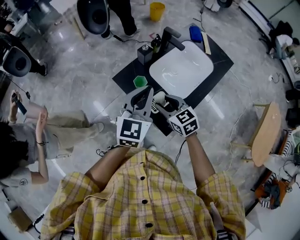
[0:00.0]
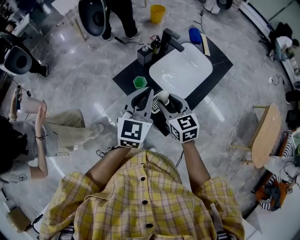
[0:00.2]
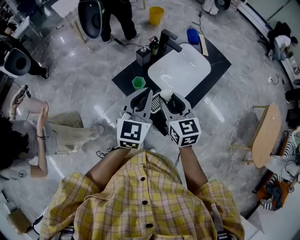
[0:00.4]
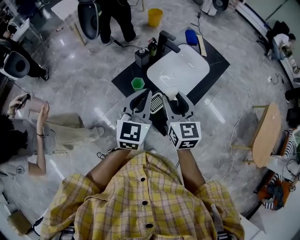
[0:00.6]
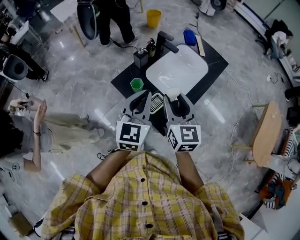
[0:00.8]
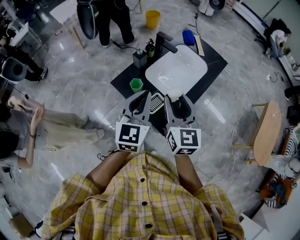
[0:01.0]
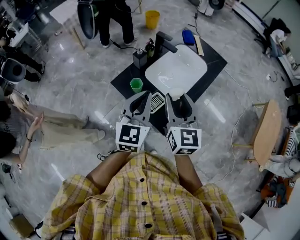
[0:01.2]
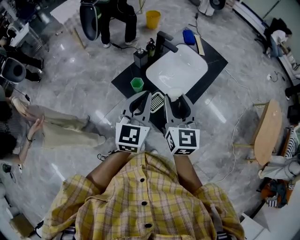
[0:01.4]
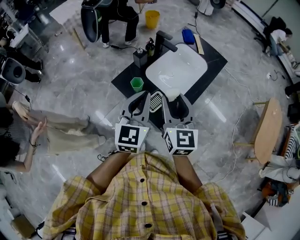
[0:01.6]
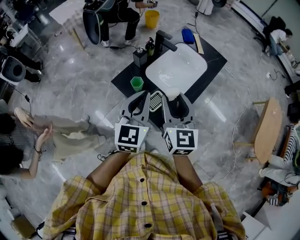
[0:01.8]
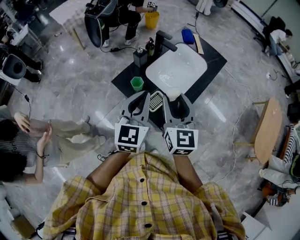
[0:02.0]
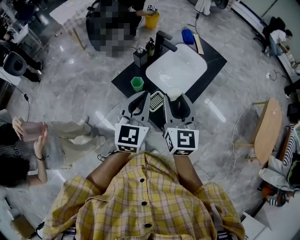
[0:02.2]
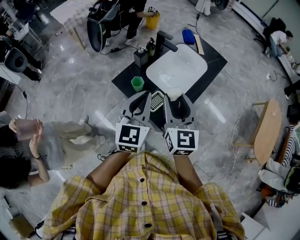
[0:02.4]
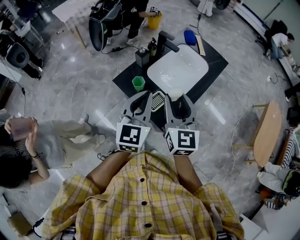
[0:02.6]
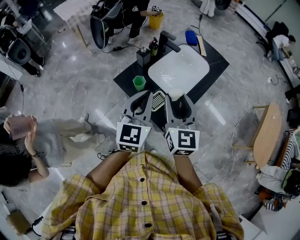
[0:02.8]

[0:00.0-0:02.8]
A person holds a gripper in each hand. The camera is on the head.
0.0 to 1.4 s: The right gripper travels upward by approximately 15 cm, and changes its angle by some 40 degrees. The left gripper shifts roughly 5 cm backward.
1.4 to 2.8 s: There are only small adjustments of the grippers.

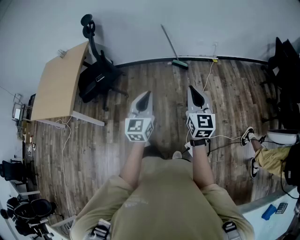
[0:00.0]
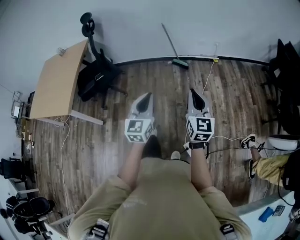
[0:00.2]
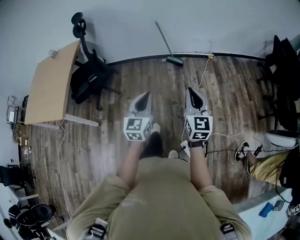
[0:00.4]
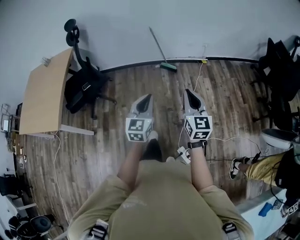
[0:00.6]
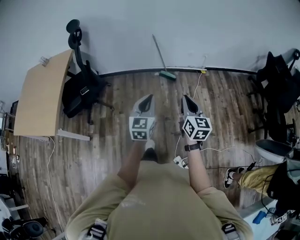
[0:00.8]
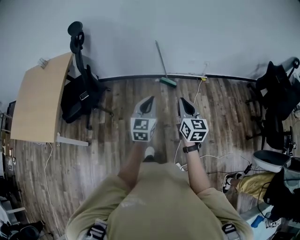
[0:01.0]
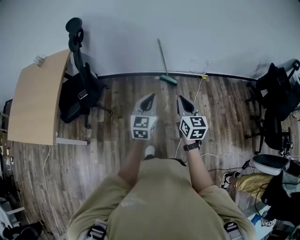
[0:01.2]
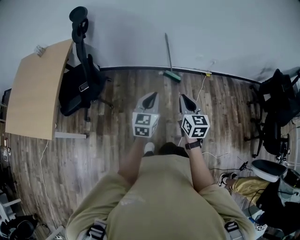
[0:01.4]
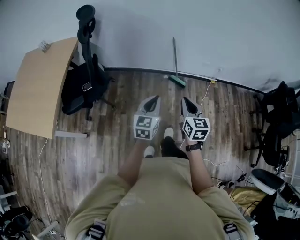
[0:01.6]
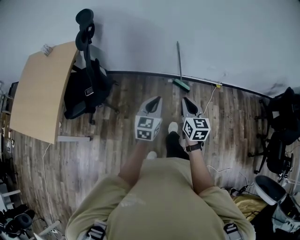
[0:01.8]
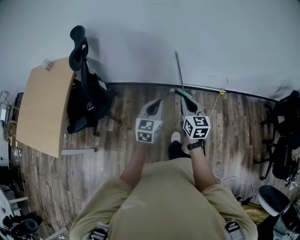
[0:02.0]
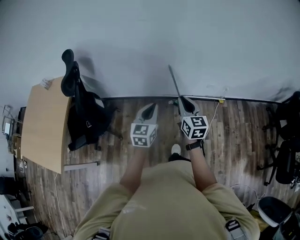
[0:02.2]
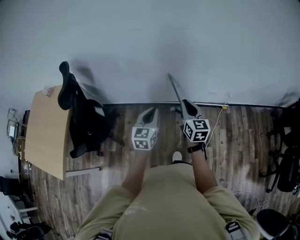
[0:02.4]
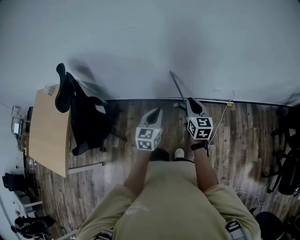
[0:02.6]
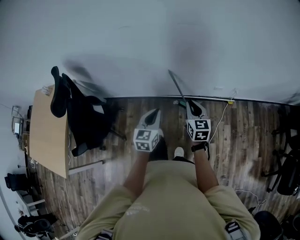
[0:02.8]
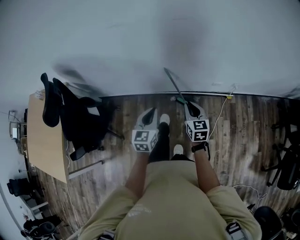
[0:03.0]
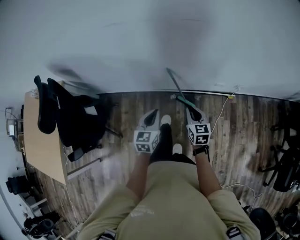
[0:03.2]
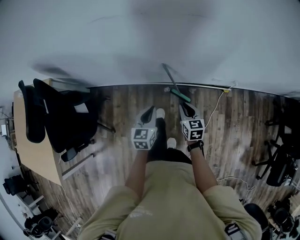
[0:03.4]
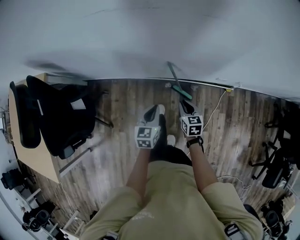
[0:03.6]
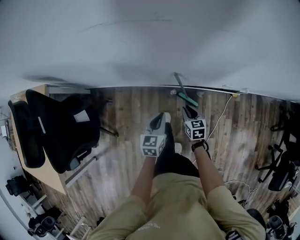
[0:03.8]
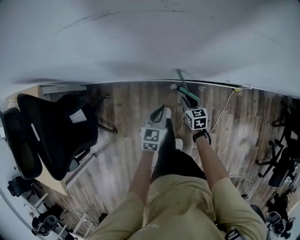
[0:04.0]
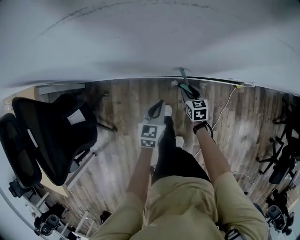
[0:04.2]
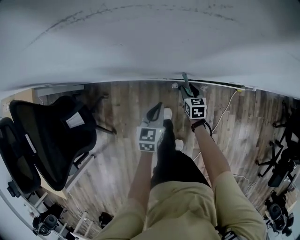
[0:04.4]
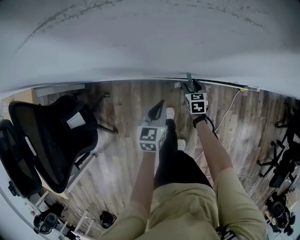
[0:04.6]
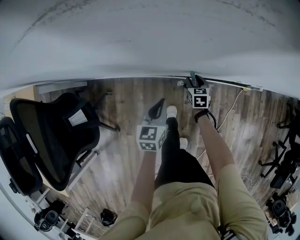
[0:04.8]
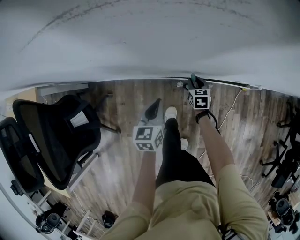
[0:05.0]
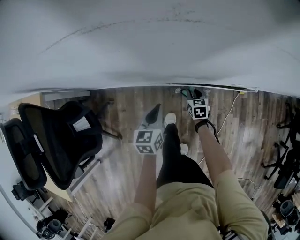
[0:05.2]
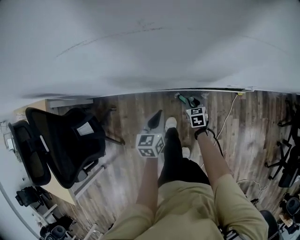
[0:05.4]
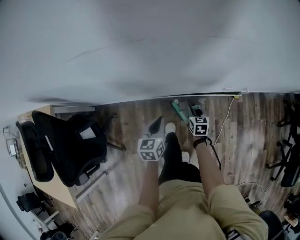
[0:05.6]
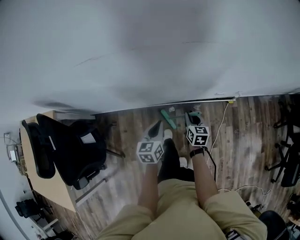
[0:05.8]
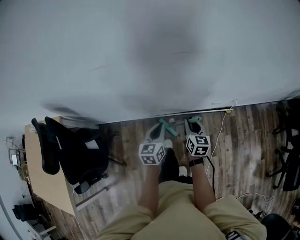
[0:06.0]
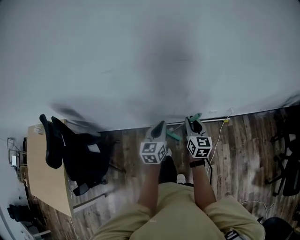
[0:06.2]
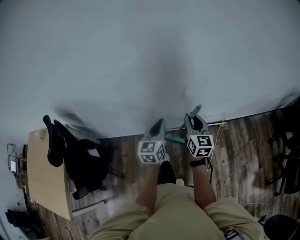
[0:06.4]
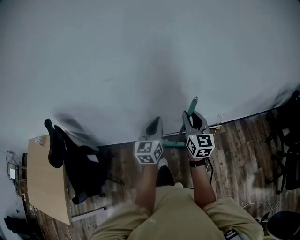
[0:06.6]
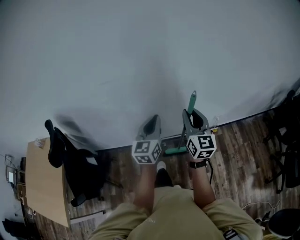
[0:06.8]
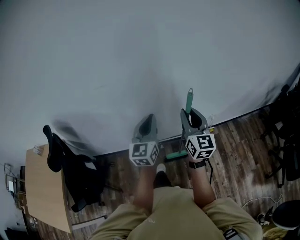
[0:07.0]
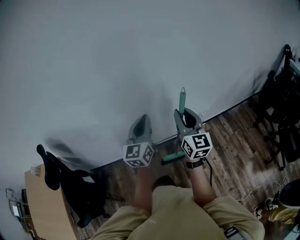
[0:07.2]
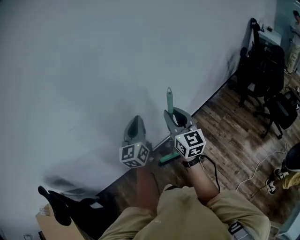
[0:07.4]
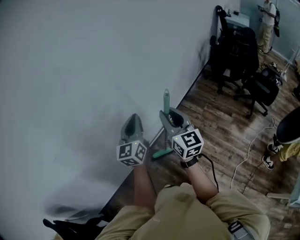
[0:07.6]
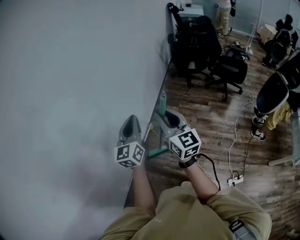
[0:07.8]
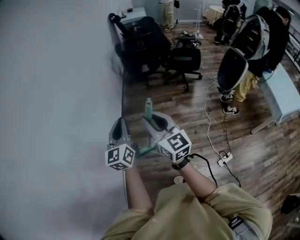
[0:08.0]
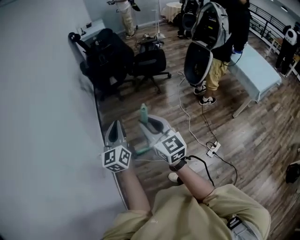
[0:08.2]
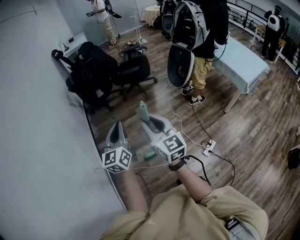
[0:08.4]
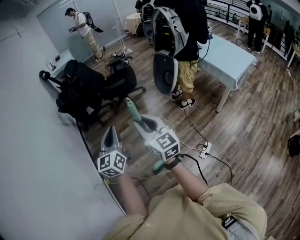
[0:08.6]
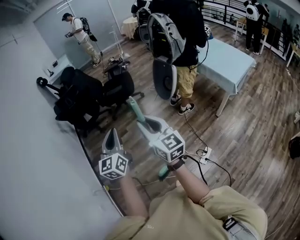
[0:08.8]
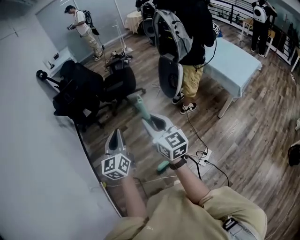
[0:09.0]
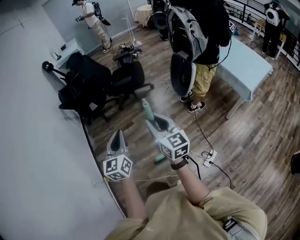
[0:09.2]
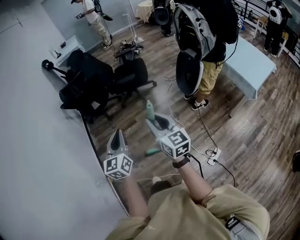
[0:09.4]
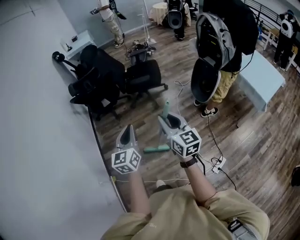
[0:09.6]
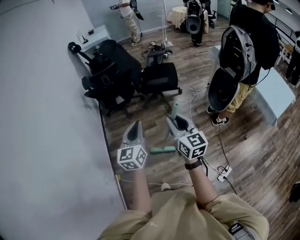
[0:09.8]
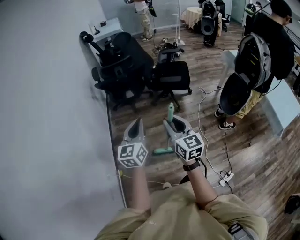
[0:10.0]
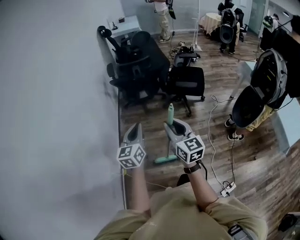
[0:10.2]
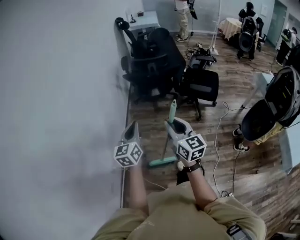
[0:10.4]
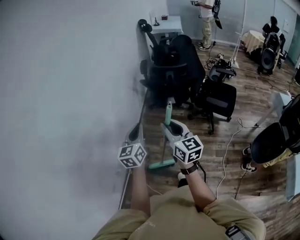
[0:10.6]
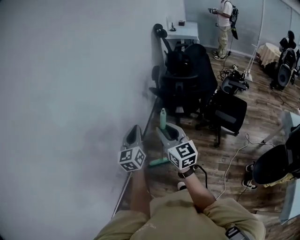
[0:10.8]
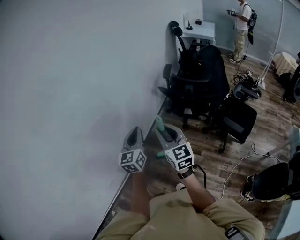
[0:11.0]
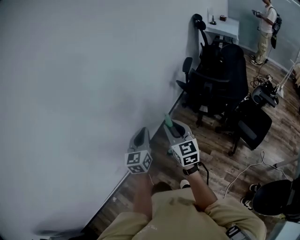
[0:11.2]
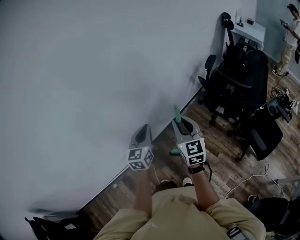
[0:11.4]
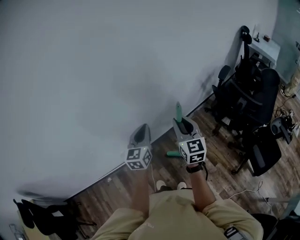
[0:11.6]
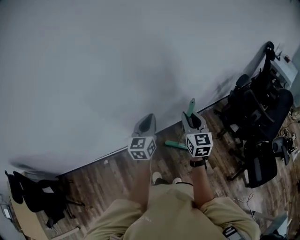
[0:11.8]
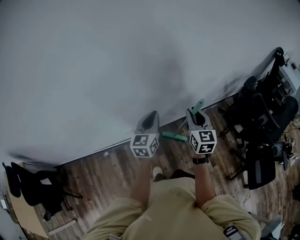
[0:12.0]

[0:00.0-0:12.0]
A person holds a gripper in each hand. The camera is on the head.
0.0 to 1.6 s: The left gripper travels forward by approximately 35 cm. The right gripper shifts approximately 40 cm forward and to the left.
1.6 to 3.0 s: The pair of grippers is taken forward, approximately 50 cm.
3.0 to 4.4 s: Both grippers travel together downward and forward, approximately 40 cm. The right gripper turns by about 20 degrees, and opens up.
4.4 to 6.0 s: The left gripper travels upward and to the right by some 25 cm. The right gripper goes approximately 35 cm upward, backward and to the right, and swivels roughly 30 degrees.
6.0 to 7.6 s: The two grippers go roughly 35 cm upward. The left gripper swivels approximately 50 degrees; the right gripper points its fingers roughly 30 degrees further upward.
7.6 to 9.0 s: Both grippers are carried some 60 cm. The right gripper rotates about 60 degrees. Meanwhile the left gripper turns by roughly 70 degrees.
9.0 to 10.4 s: Both grippers are carried about 50 cm. The left gripper rotates roughly 30 degrees; the right gripper changes its angle by some 30 degrees.
10.4 to 12.0 s: The right gripper shifts by some 35 cm, and turns by approximately 50 degrees. The left gripper changes place by some 30 cm, and swivels about 60 degrees.

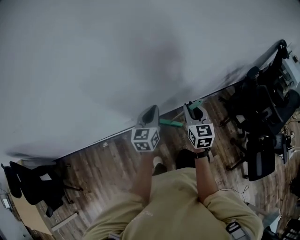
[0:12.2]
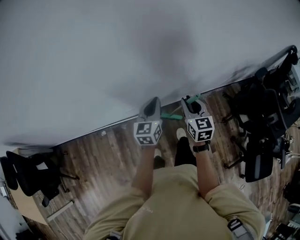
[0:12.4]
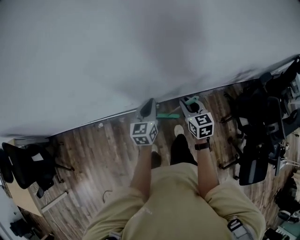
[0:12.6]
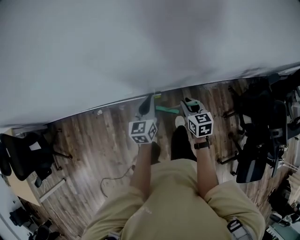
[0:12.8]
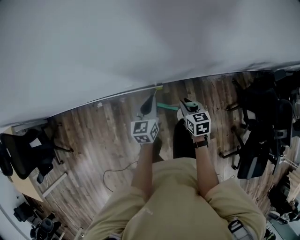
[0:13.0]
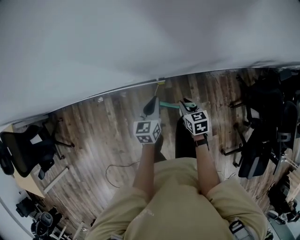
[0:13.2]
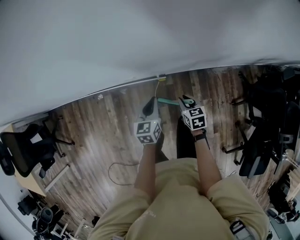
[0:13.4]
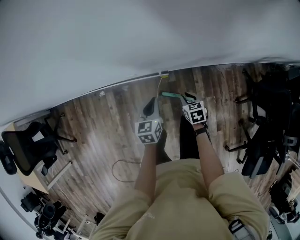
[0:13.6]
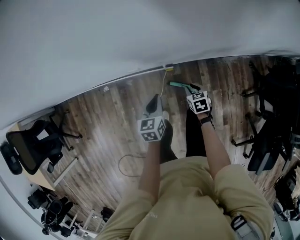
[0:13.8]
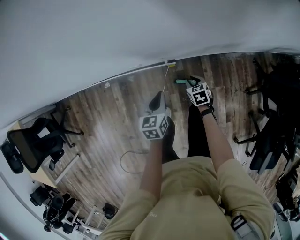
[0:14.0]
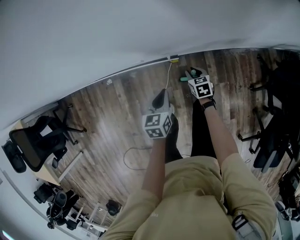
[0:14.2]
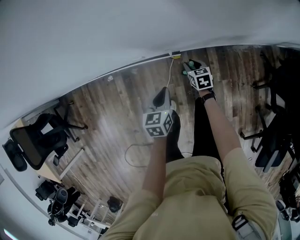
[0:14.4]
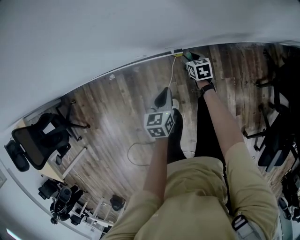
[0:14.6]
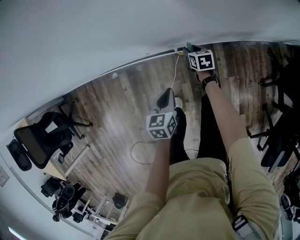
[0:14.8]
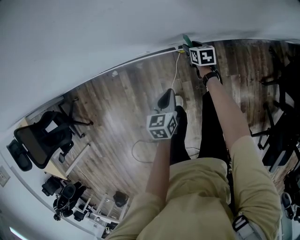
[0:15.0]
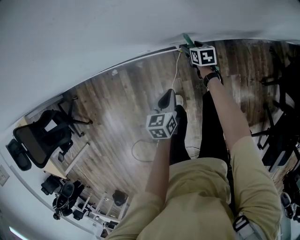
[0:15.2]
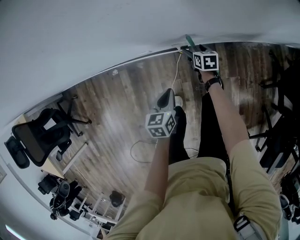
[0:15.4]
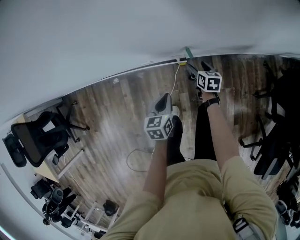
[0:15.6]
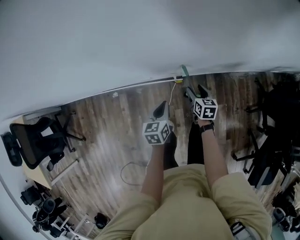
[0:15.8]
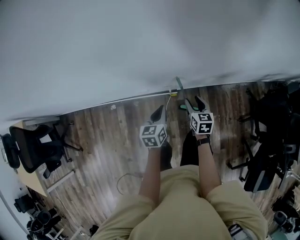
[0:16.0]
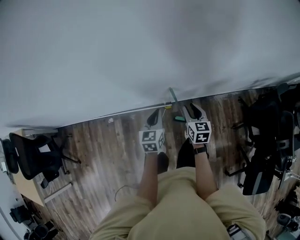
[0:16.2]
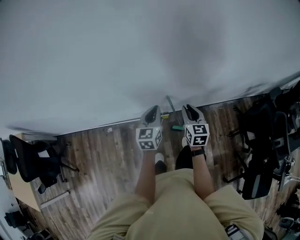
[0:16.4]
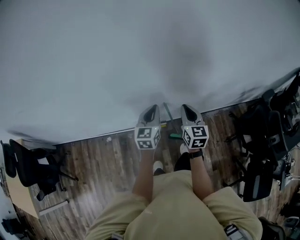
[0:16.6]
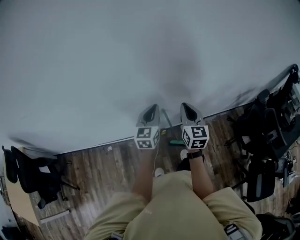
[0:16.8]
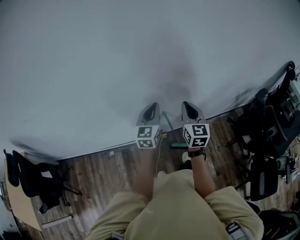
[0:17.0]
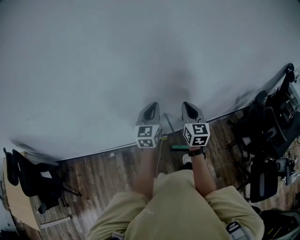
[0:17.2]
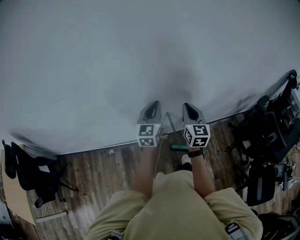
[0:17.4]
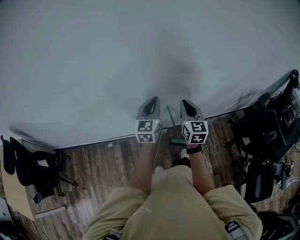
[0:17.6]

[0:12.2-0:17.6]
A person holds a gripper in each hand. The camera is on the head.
12.2 to 13.6 s: The two grippers go approximately 35 cm downward. The left gripper turns by roughly 30 degrees; the right gripper tilts its fingers about 40 degrees downward.
13.6 to 15.0 s: The right gripper goes approximately 20 cm forward and downward, while the left gripper is displaced downward by some 10 cm.
15.0 to 16.2 s: The left gripper shifts some 20 cm upward, and changes its angle by about 20 degrees; the right gripper is displaced upward by some 35 cm, changes its angle by some 30 degrees, and opens and closes again.
16.2 to 17.6 s: The grippers both shift upward by roughly 20 cm. The right gripper swivels about 20 degrees, and closes up, while the left gripper swivels about 30 degrees.

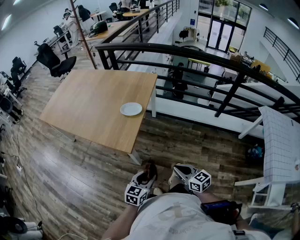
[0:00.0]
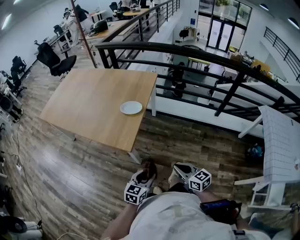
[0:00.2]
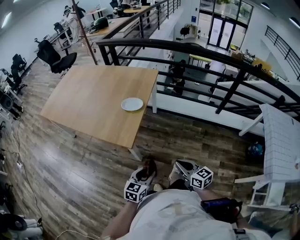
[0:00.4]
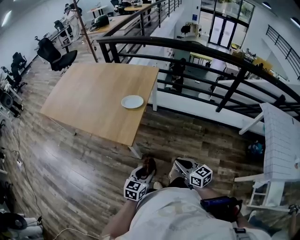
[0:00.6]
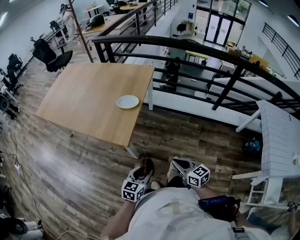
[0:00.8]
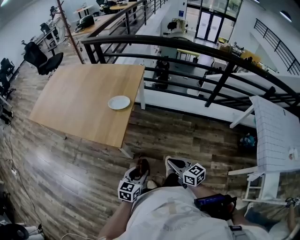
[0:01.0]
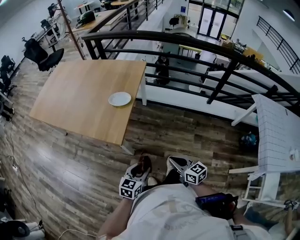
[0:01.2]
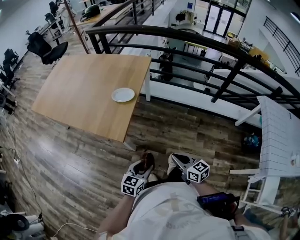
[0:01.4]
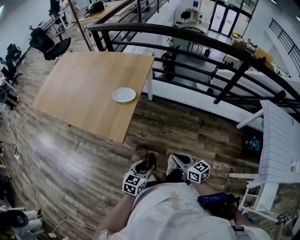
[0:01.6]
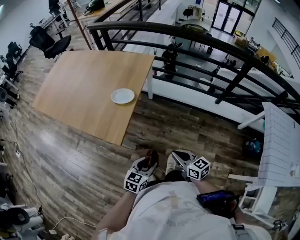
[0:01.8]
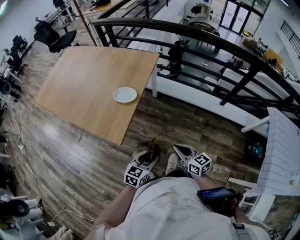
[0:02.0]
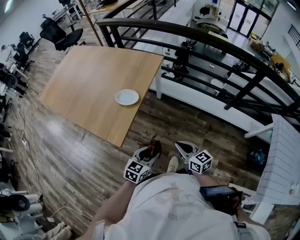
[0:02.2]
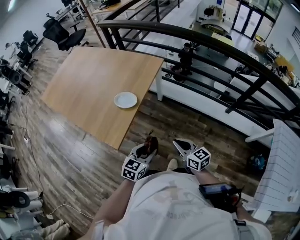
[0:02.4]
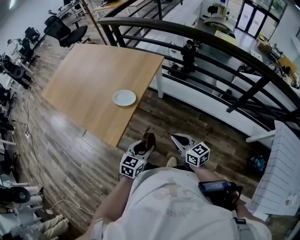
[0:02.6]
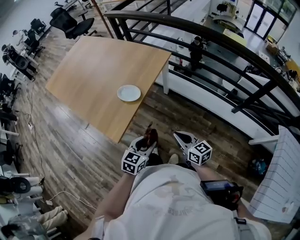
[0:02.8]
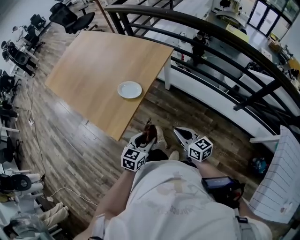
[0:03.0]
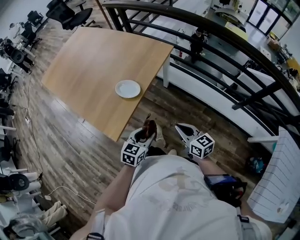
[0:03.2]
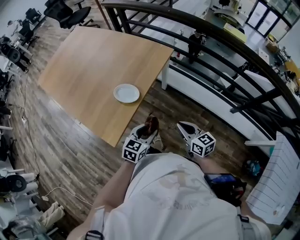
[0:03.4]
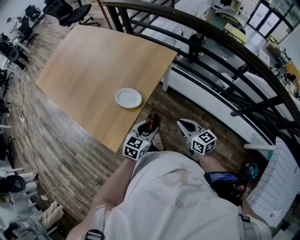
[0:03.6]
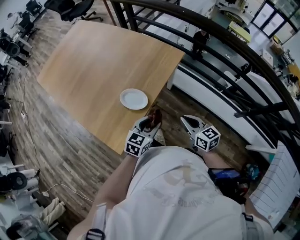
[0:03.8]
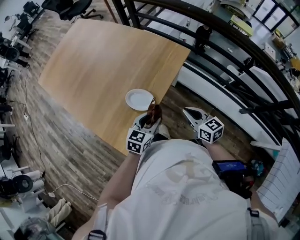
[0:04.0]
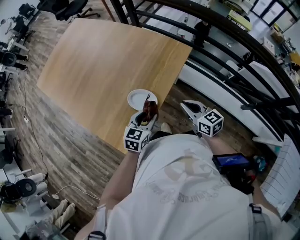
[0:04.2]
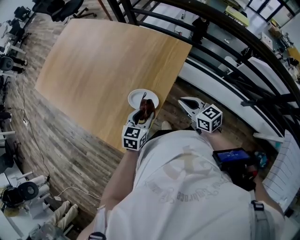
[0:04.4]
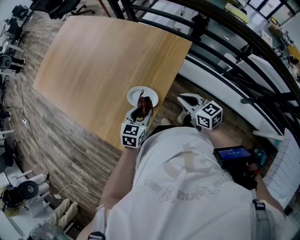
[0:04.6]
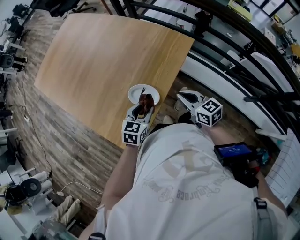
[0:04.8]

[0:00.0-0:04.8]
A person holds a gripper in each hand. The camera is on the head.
0.0 to 1.6 s: The right gripper moves roughly 5 cm. The left gripper changes place by roughly 5 cm.
1.6 to 3.2 s: The grippers both shift forward by some 25 cm.
3.2 to 4.8 s: The right gripper travels forward by approximately 25 cm. The left gripper shifts some 25 cm forward and to the left.
